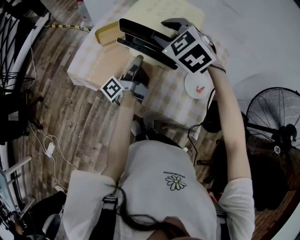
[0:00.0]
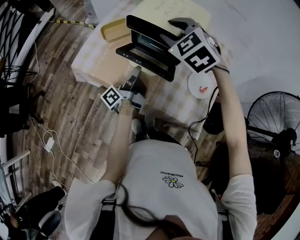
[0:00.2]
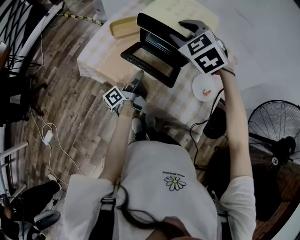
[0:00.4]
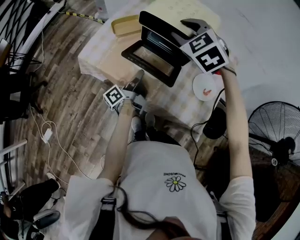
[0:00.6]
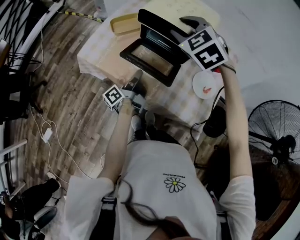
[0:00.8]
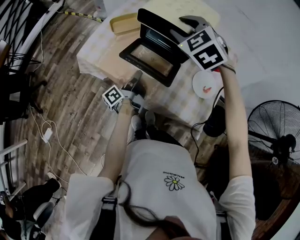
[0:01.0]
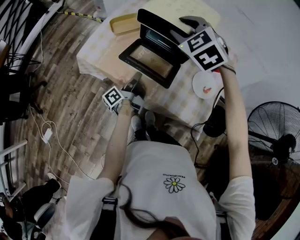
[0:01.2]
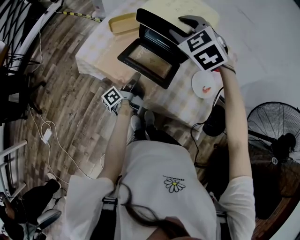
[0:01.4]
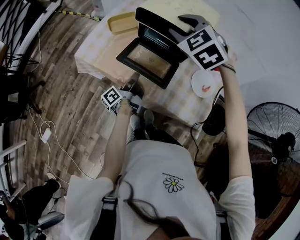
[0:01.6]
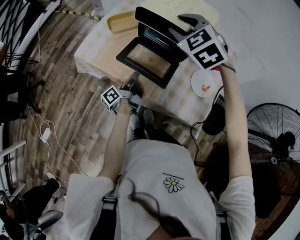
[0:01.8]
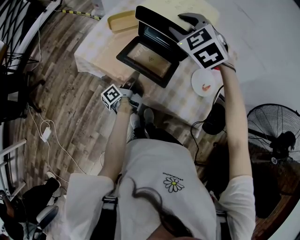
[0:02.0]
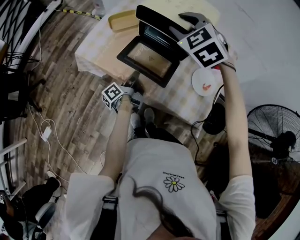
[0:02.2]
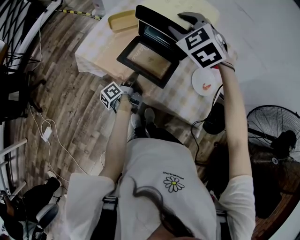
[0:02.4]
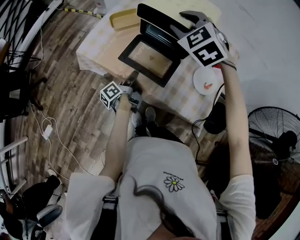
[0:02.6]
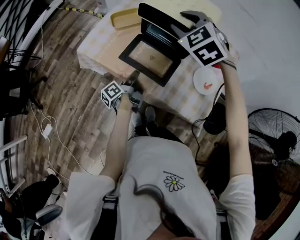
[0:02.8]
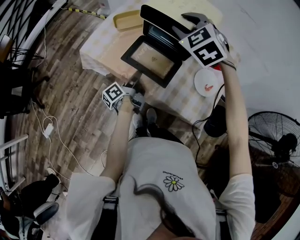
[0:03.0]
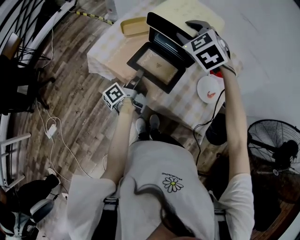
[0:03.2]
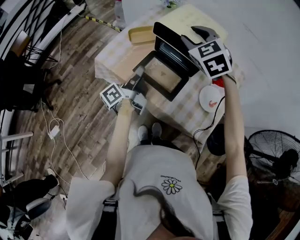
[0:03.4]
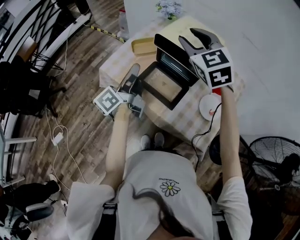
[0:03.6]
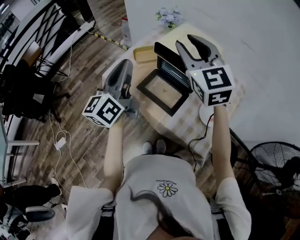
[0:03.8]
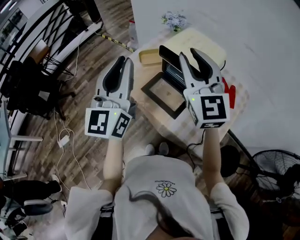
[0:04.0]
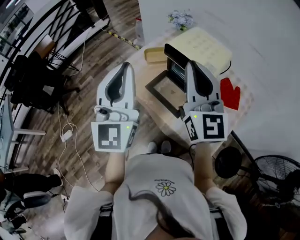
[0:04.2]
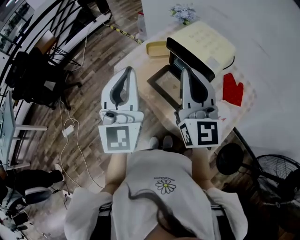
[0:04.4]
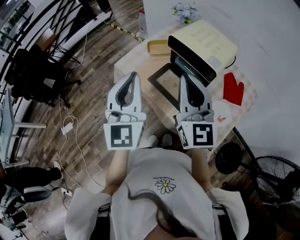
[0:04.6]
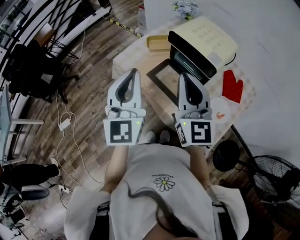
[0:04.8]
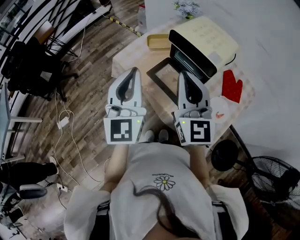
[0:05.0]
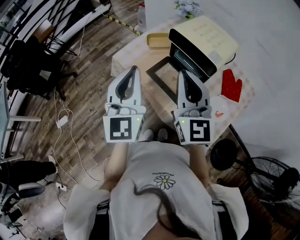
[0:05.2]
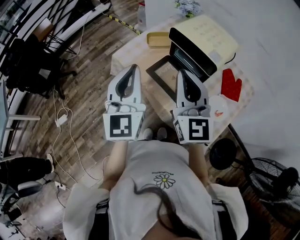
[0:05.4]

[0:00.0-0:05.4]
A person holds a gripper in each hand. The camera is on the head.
0:00.0 to 0:01.4: The left gripper moves downward, backward and to the left, roughly 15 cm.
0:01.4 to 0:02.8: The grippers make only small movements.
0:02.8 to 0:04.0: The left gripper shifts about 40 cm upward, and twists some 90 degrees clockwise, seen from behind. Meanwhile the right gripper shifts roughly 20 cm upward and backward, and angles its fingers upward, by about 40 degrees.
0:04.0 to 0:05.4: The right gripper goes some 10 cm downward and backward, and closes its fingers. The left gripper shifts about 10 cm downward.

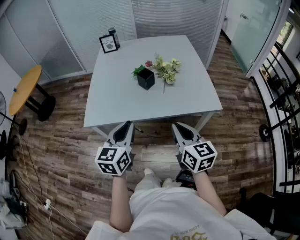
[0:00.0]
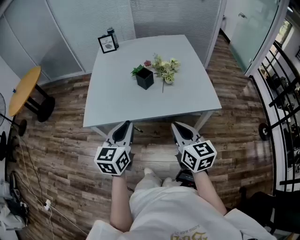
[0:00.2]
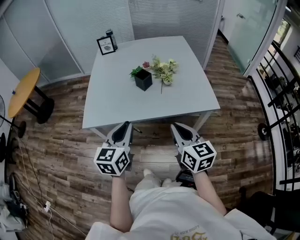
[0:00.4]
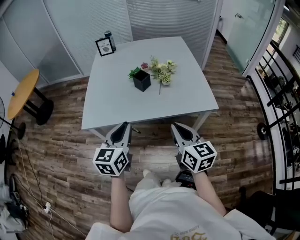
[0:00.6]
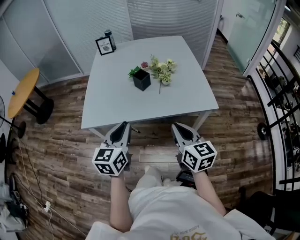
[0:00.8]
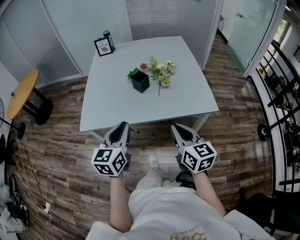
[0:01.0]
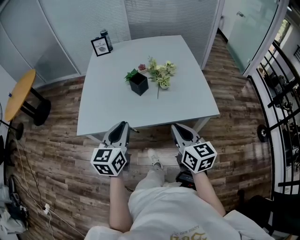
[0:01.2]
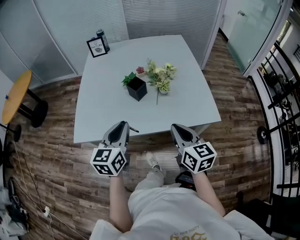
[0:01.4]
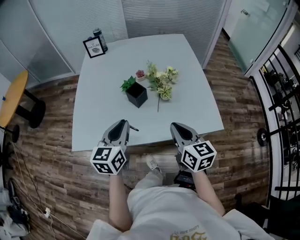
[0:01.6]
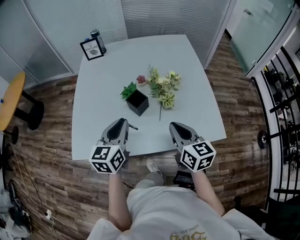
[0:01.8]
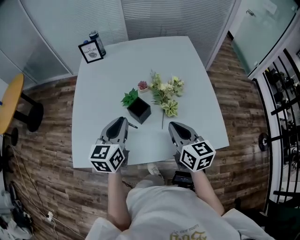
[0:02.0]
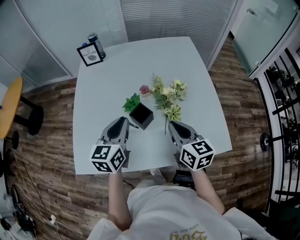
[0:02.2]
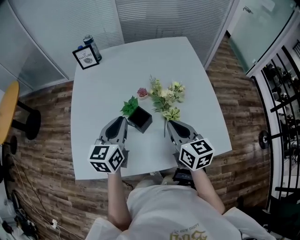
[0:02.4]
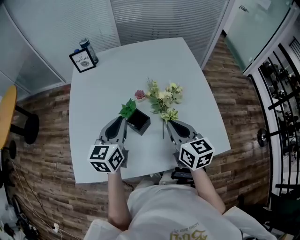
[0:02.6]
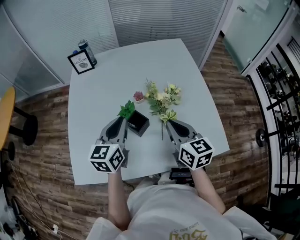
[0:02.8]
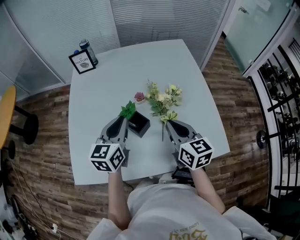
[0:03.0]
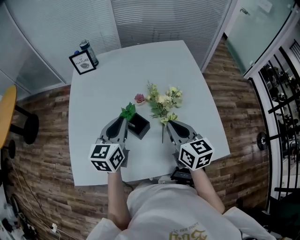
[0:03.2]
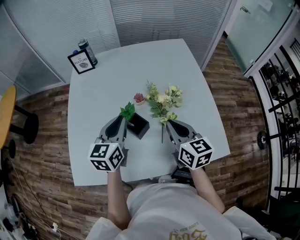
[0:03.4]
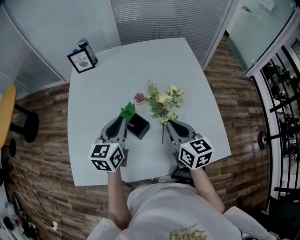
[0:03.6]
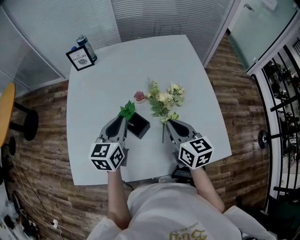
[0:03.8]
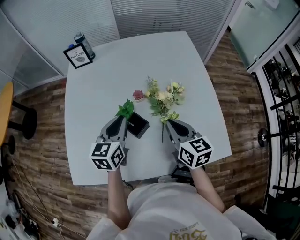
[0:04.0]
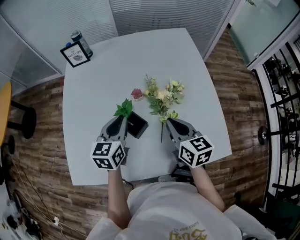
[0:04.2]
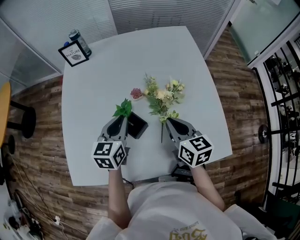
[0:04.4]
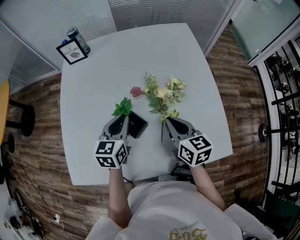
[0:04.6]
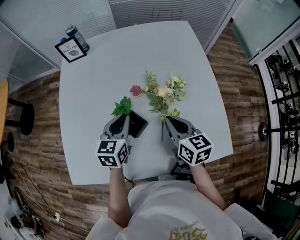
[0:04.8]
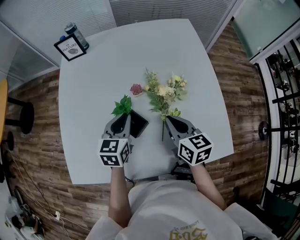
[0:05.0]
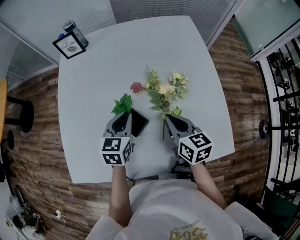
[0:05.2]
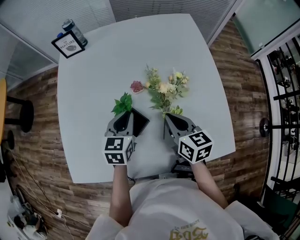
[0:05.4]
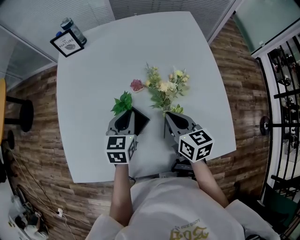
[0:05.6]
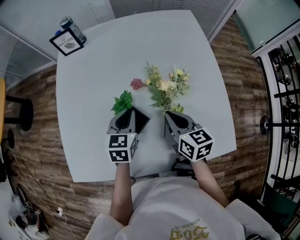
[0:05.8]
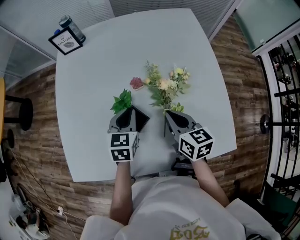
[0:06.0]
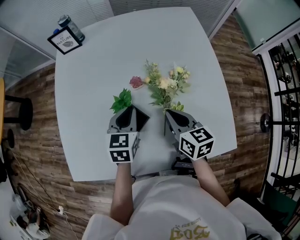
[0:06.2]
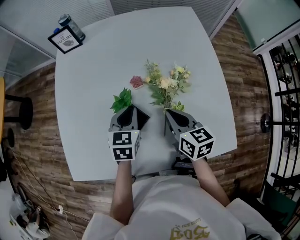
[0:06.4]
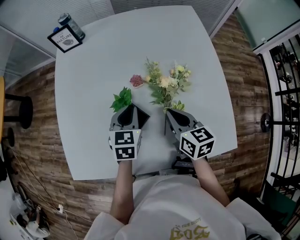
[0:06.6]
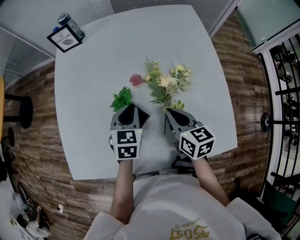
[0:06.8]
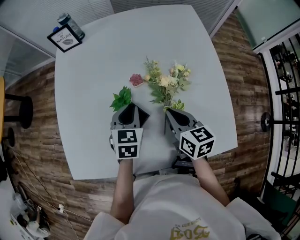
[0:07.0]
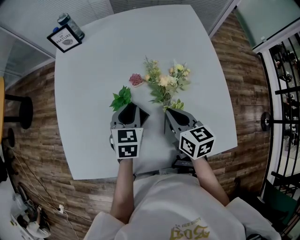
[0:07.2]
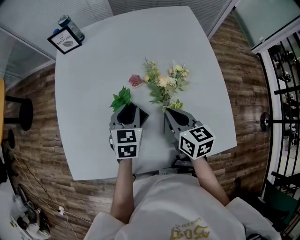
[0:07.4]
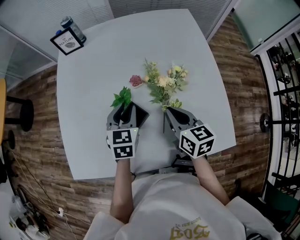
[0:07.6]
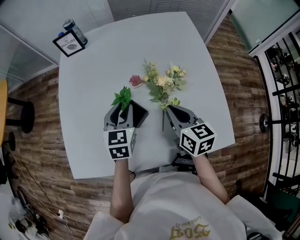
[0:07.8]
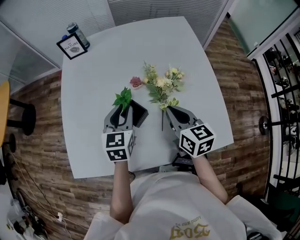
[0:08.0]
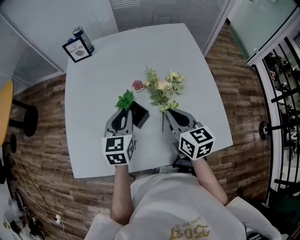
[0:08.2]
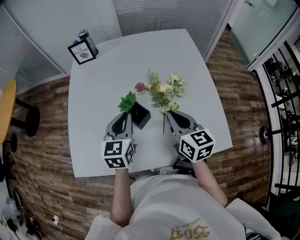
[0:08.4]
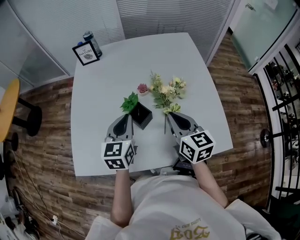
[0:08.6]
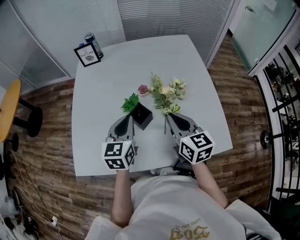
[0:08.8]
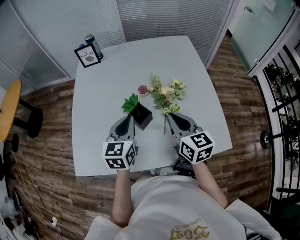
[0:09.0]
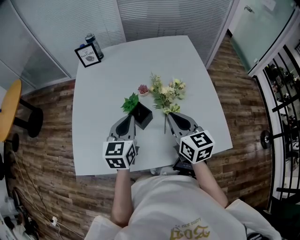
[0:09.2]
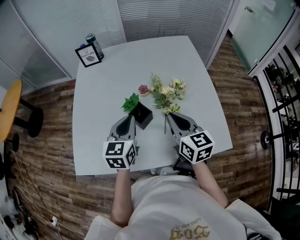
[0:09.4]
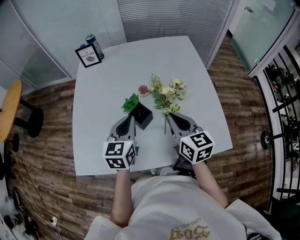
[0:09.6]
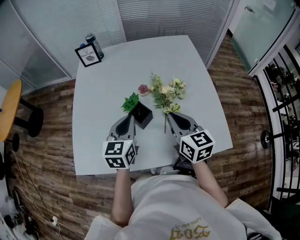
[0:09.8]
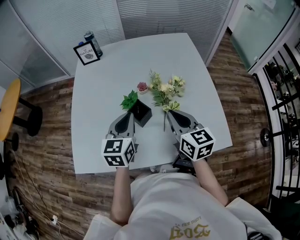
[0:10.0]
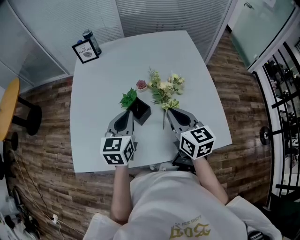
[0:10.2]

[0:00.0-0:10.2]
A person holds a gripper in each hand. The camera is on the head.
0:00.0 to 0:01.4: The two grippers go roughly 10 cm forward.
0:01.4 to 0:03.0: Both grippers move forward, approximately 30 cm.
0:03.0 to 0:04.4: Both grippers travel together downward and forward, roughly 10 cm.
0:04.4 to 0:05.8: The left gripper shifts some 5 cm downward.
0:05.8 to 0:07.2: The grippers stay close to where they were, moving slightly.
0:07.2 to 0:08.8: The grippers both shift upward and backward by roughly 15 cm. The left gripper swivels about 20 degrees.
0:08.8 to 0:10.2: Both grippers stay about where they are.

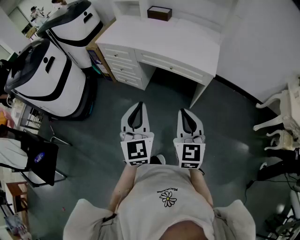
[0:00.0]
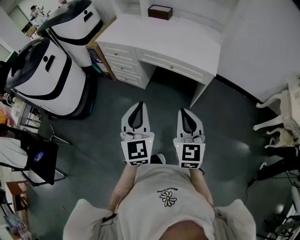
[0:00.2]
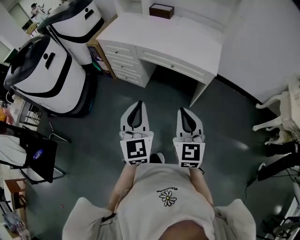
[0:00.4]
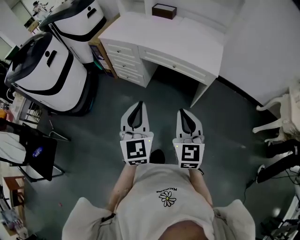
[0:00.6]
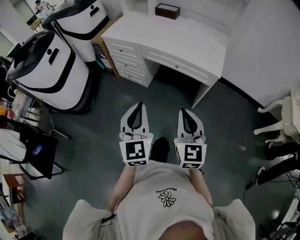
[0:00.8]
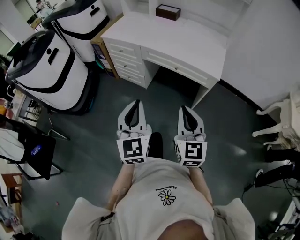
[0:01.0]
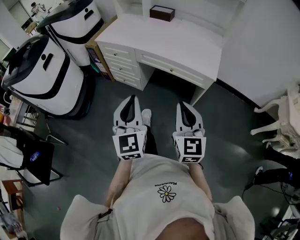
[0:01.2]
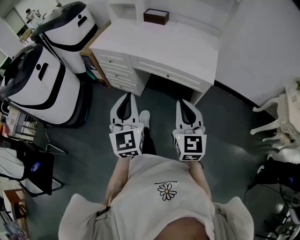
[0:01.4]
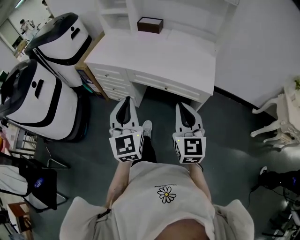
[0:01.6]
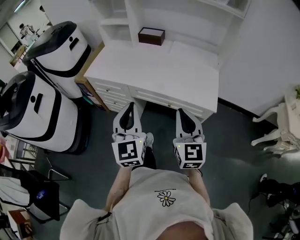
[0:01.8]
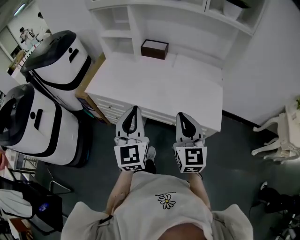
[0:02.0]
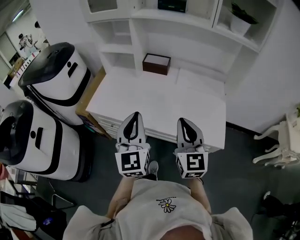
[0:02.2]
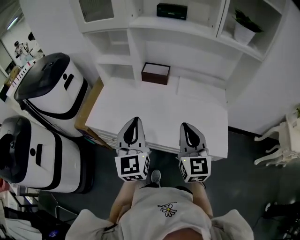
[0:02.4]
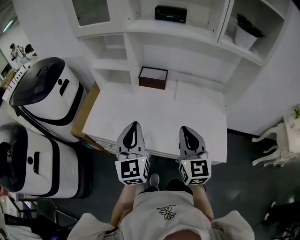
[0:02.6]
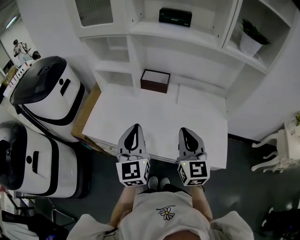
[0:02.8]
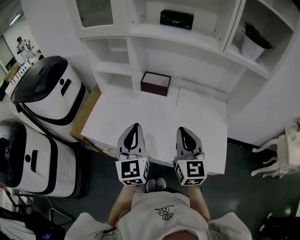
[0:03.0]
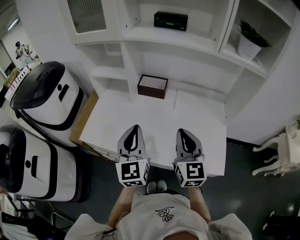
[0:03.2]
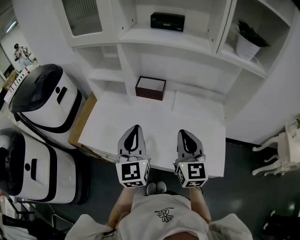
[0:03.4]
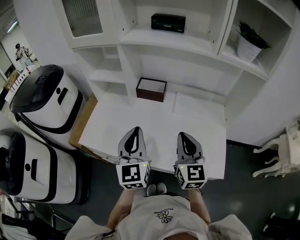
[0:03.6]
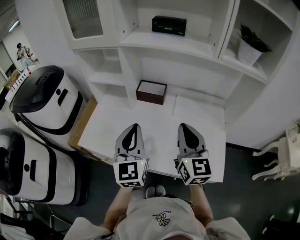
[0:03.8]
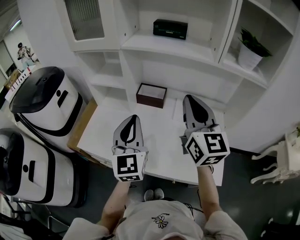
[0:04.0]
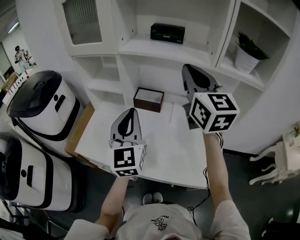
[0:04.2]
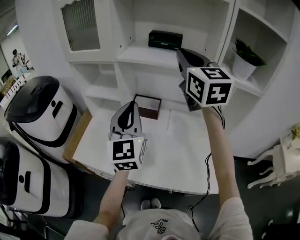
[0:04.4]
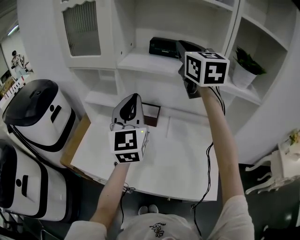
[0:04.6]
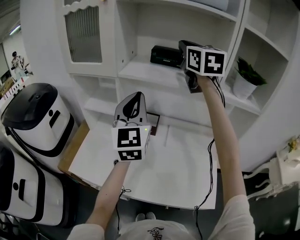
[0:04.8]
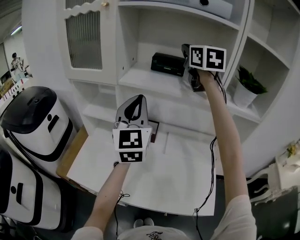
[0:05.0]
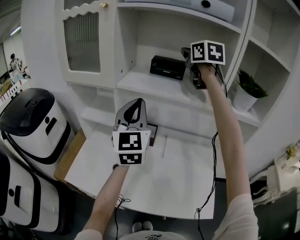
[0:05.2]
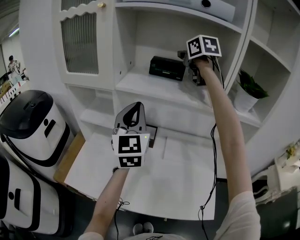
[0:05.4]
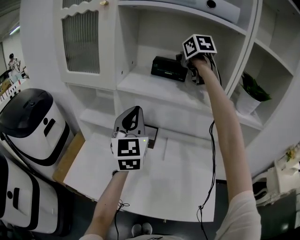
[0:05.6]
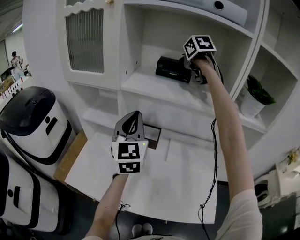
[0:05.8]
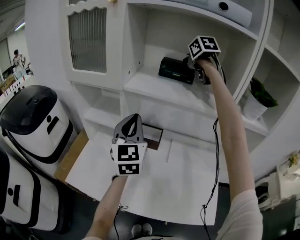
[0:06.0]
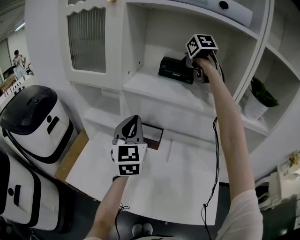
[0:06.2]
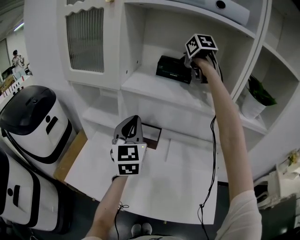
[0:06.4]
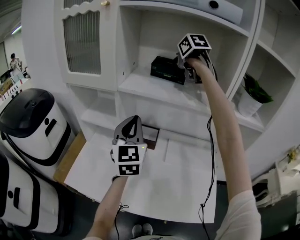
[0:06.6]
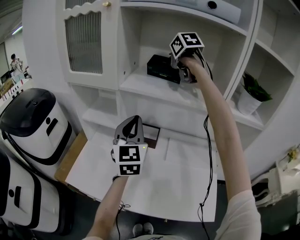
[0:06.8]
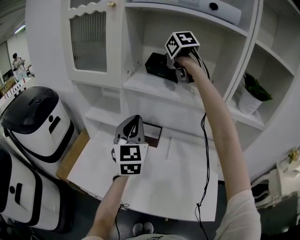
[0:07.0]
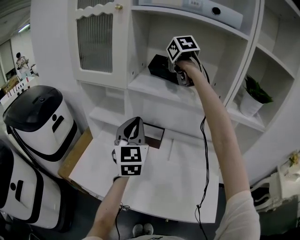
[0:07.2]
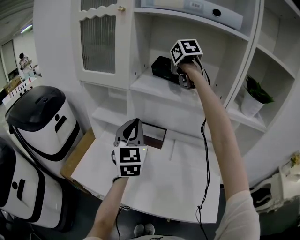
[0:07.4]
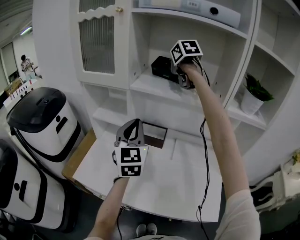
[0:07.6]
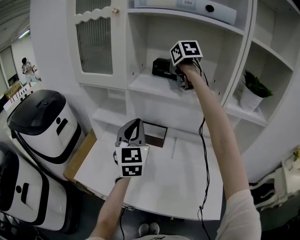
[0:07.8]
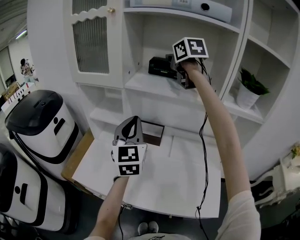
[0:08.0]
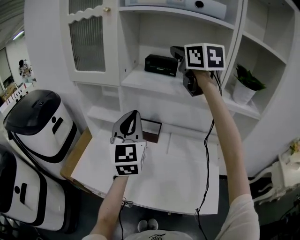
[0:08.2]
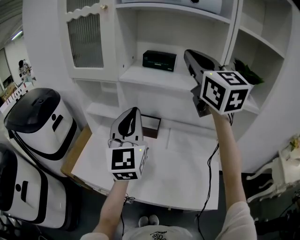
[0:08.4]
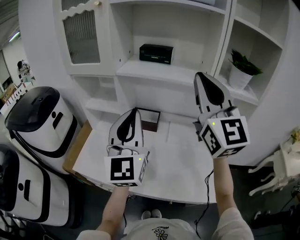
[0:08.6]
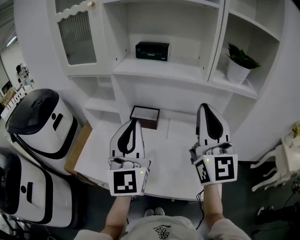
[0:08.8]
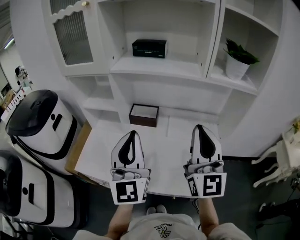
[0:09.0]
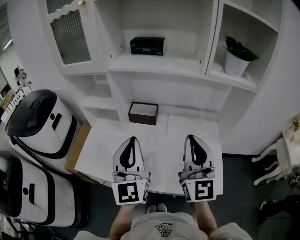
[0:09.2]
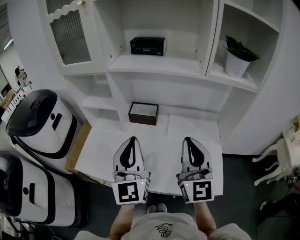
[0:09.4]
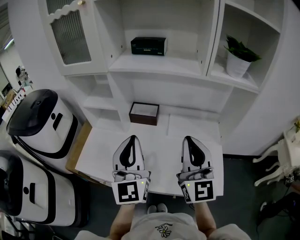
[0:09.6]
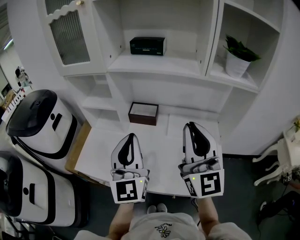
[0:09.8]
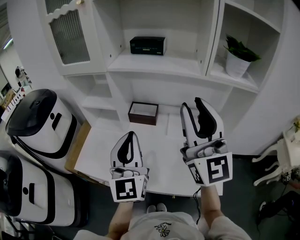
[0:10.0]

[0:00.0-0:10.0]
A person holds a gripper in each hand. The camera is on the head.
0:00.0 to 0:01.4: Both grippers travel together forward, about 10 cm.
0:01.4 to 0:02.8: The two grippers travel together, forward, about 40 cm.
0:02.8 to 0:04.2: The right gripper goes approximately 30 cm upward and forward; the left gripper moves forward and upward, some 15 cm.
0:04.2 to 0:05.8: The left gripper travels forward by approximately 15 cm. Meanwhile the right gripper goes some 30 cm forward, and tips its fingers downward by roughly 40 degrees.
0:05.8 to 0:07.2: The right gripper heads to the left, covering some 10 cm.
0:07.2 to 0:08.6: The right gripper moves backward, roughly 35 cm, and angles its fingers upward, by some 60 degrees. Meanwhile the left gripper shifts about 15 cm backward and upward.
0:08.6 to 0:10.0: The left gripper shifts about 10 cm downward. The right gripper heads downward and backward, covering about 10 cm.
